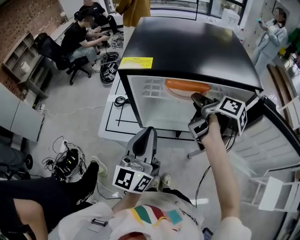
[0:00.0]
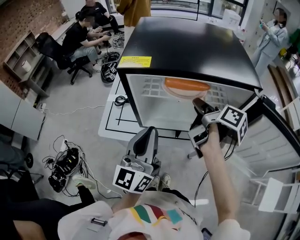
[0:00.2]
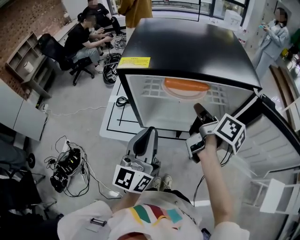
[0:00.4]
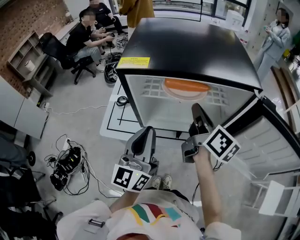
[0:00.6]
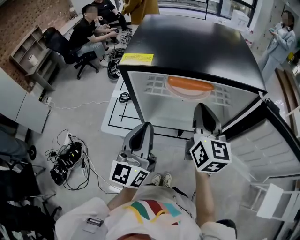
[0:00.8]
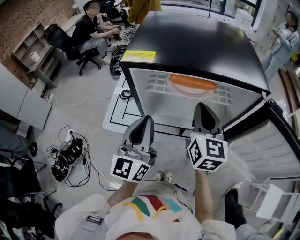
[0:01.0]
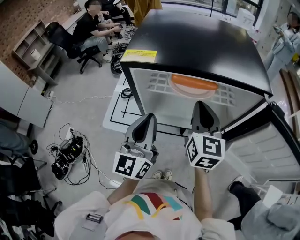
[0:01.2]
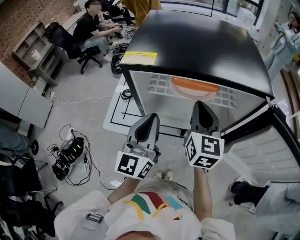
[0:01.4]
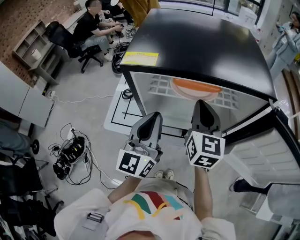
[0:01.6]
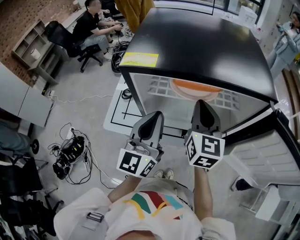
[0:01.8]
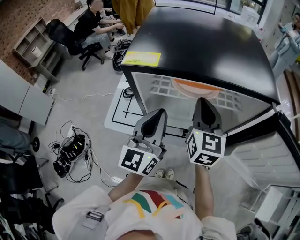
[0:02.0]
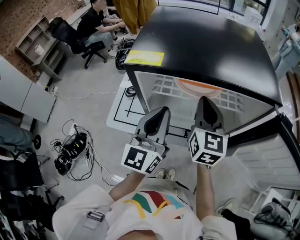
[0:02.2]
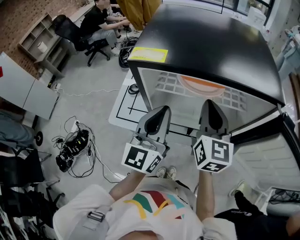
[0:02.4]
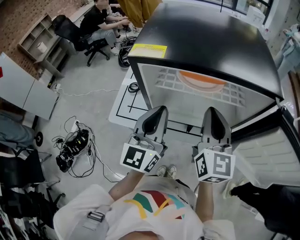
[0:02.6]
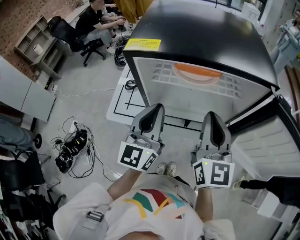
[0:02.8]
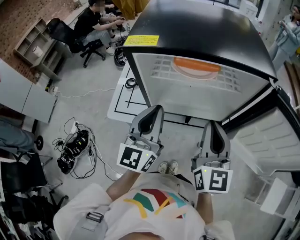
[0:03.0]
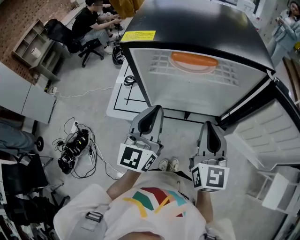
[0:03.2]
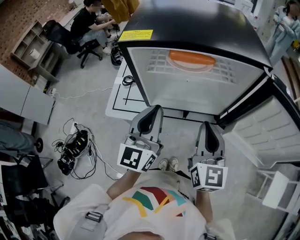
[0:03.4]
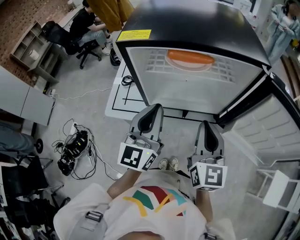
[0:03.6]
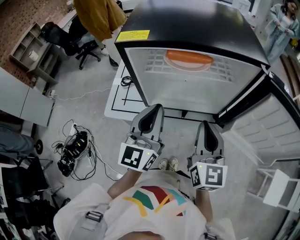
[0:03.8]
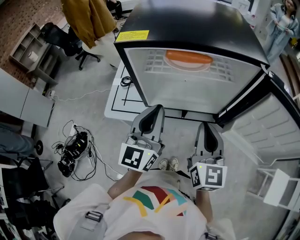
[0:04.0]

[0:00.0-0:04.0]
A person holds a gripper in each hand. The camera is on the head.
0:02.6 to 0:04.0: The left gripper ends up roughly 5 cm from where it was.

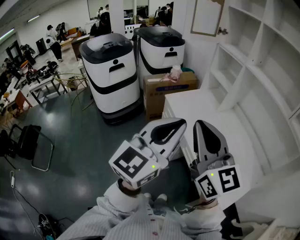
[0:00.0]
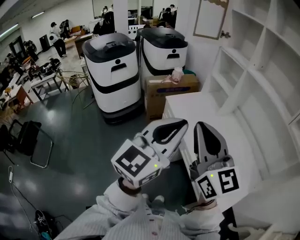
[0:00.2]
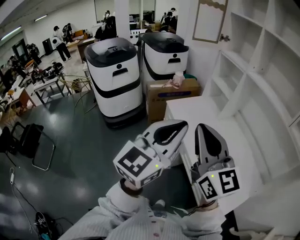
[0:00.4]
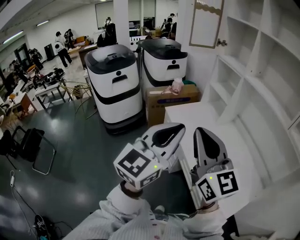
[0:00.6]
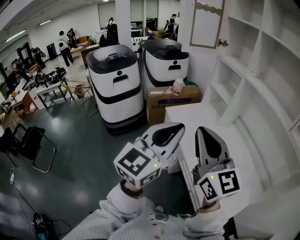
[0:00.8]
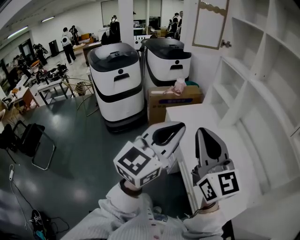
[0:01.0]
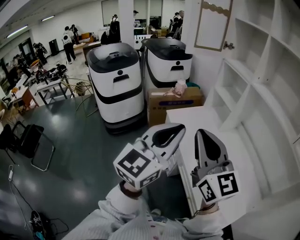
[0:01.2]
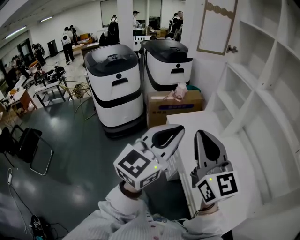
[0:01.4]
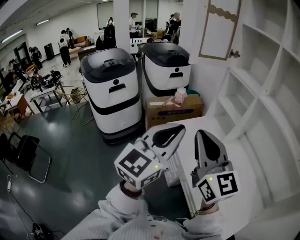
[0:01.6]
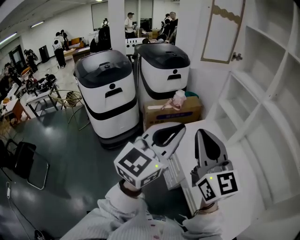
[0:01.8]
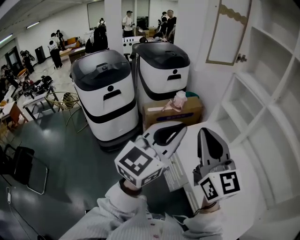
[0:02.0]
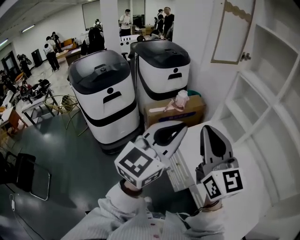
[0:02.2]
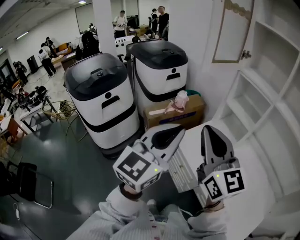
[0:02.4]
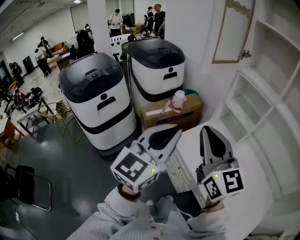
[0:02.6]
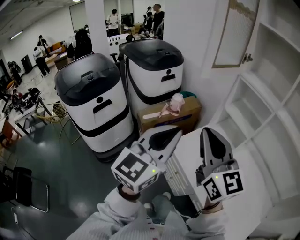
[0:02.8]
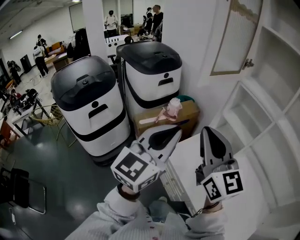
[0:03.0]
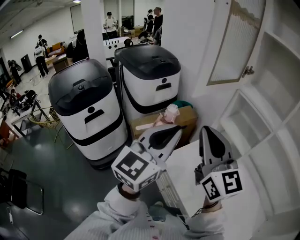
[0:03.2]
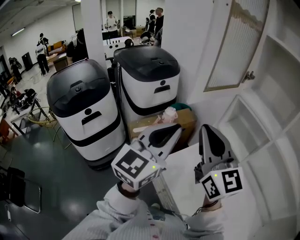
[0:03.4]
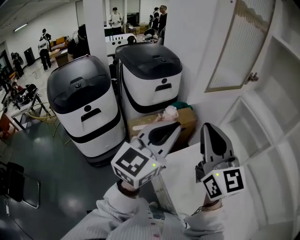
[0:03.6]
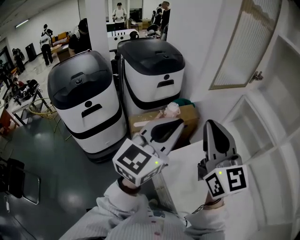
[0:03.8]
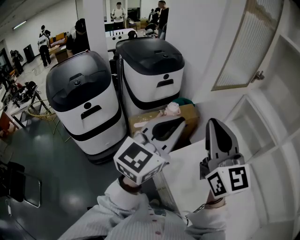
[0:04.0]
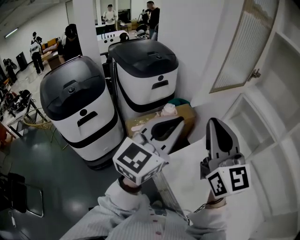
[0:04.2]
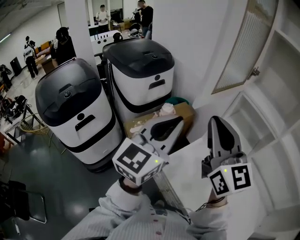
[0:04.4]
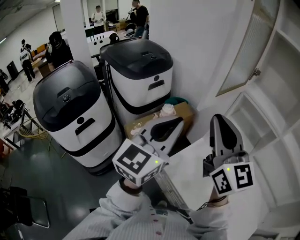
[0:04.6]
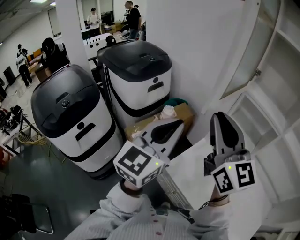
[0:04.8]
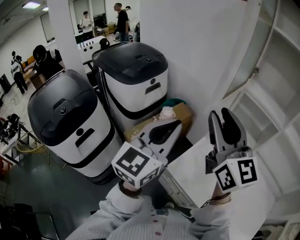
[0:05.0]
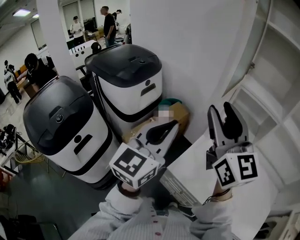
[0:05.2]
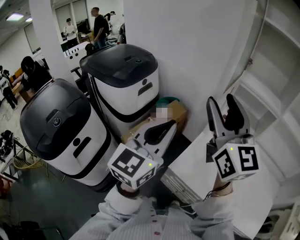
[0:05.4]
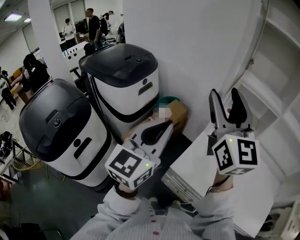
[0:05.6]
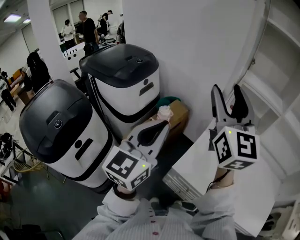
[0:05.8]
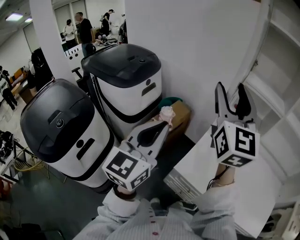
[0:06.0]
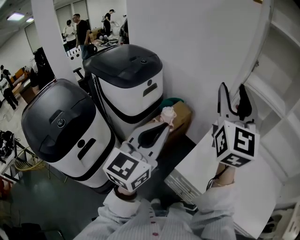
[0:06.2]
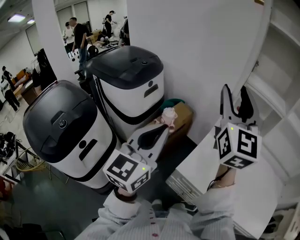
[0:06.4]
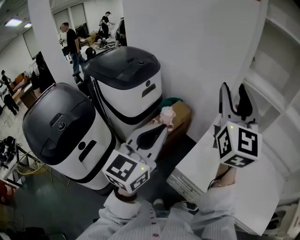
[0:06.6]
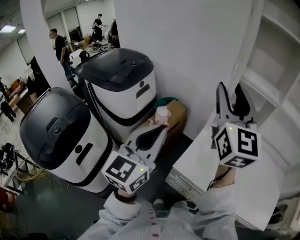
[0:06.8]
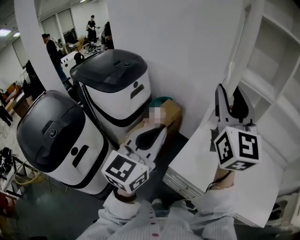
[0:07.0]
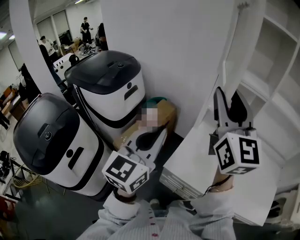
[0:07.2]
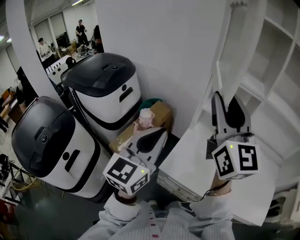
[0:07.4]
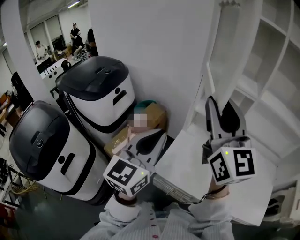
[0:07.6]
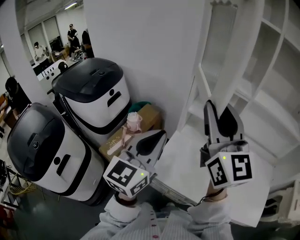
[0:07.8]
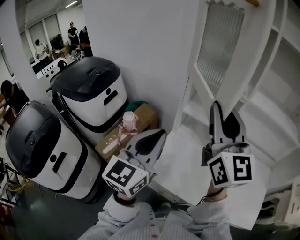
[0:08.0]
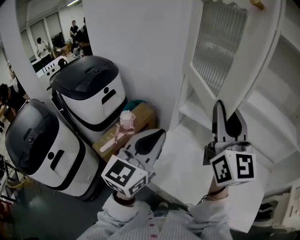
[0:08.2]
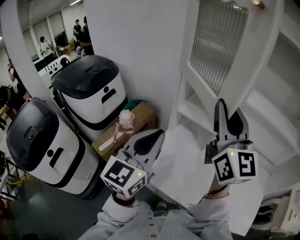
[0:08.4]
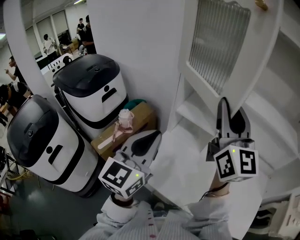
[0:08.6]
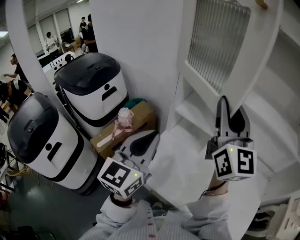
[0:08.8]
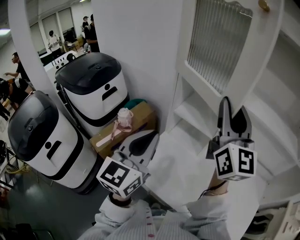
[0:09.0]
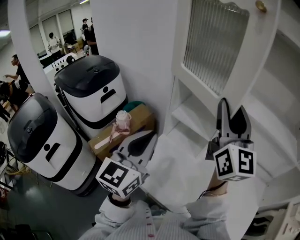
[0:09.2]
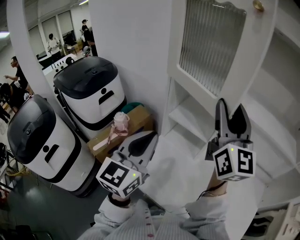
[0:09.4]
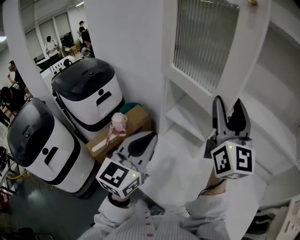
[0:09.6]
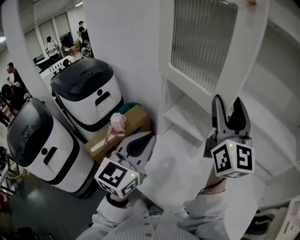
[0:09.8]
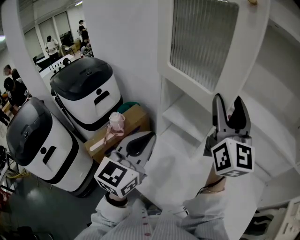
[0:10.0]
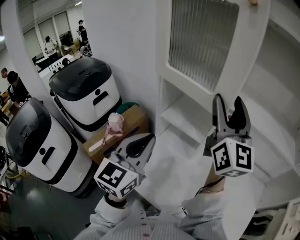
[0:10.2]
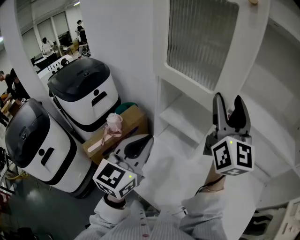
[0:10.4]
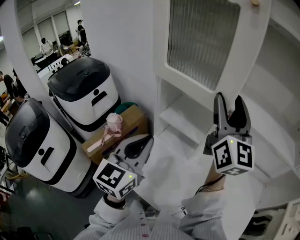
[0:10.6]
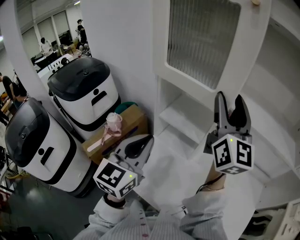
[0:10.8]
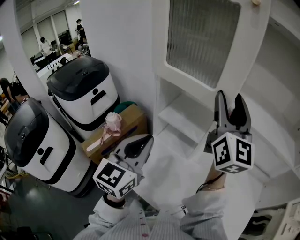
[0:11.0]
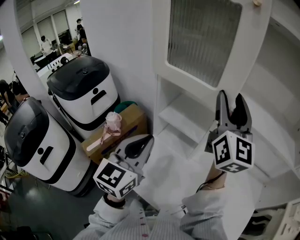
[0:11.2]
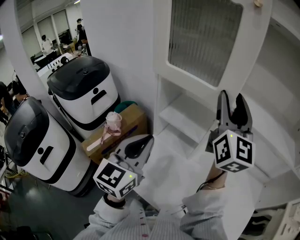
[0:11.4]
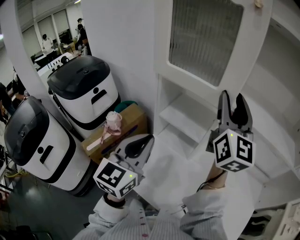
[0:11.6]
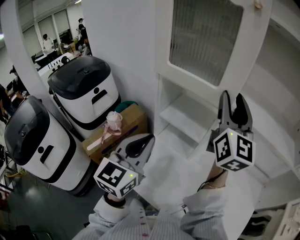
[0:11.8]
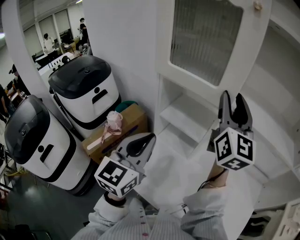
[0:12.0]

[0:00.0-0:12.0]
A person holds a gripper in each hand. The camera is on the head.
0:00.0 to 0:01.6: Both grippers move forward, about 20 cm.
0:01.6 to 0:03.0: The left gripper goes some 25 cm forward and to the left. Meanwhile the right gripper is displaced forward by about 25 cm.
0:03.0 to 0:04.4: The grippers both shift forward by roughly 15 cm.
0:04.4 to 0:06.0: The right gripper travels forward, to the left and upward by some 10 cm, changes its angle by roughly 40 degrees, and opens. Meanwhile the left gripper travels to the left by approximately 15 cm.
0:06.0 to 0:07.6: The grippers both shift to the right by about 10 cm.
0:07.6 to 0:09.0: The right gripper goes about 20 cm to the right and forward, while the left gripper moves to the right, roughly 10 cm.
0:09.0 to 0:10.4: The left gripper shifts by roughly 5 cm. Meanwhile the right gripper goes about 10 cm forward and to the right, and opens.
0:10.4 to 0:12.0: The grippers make only small movements.

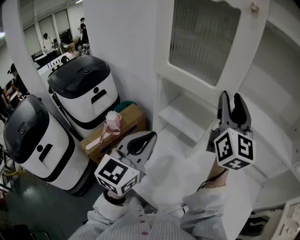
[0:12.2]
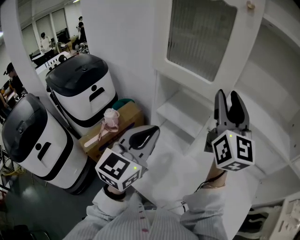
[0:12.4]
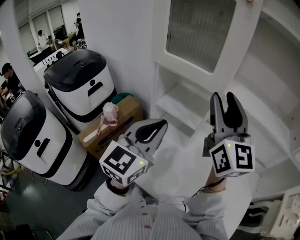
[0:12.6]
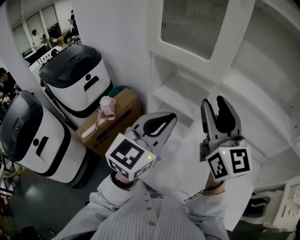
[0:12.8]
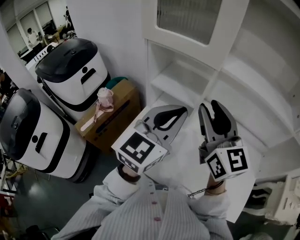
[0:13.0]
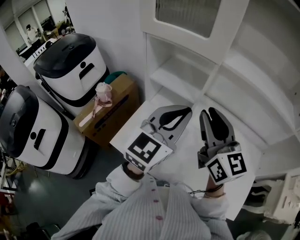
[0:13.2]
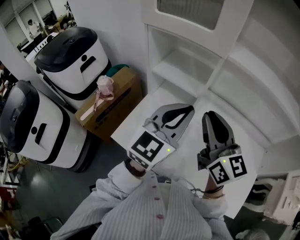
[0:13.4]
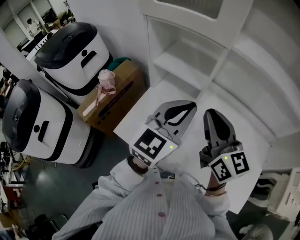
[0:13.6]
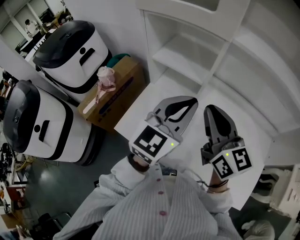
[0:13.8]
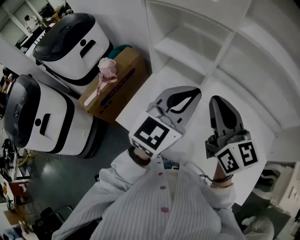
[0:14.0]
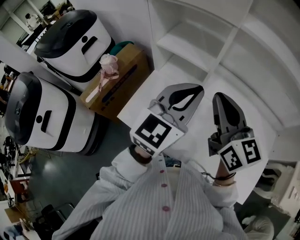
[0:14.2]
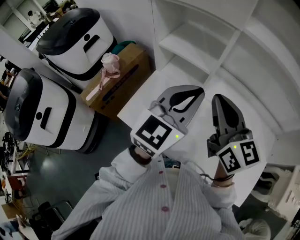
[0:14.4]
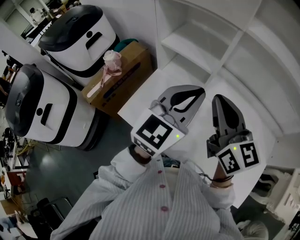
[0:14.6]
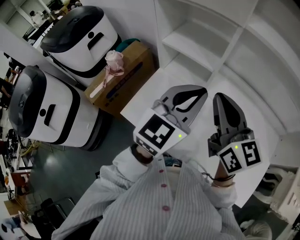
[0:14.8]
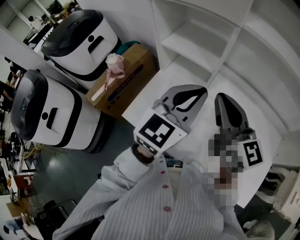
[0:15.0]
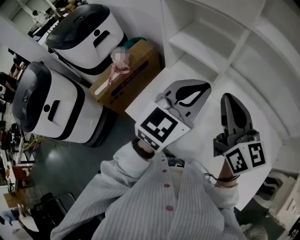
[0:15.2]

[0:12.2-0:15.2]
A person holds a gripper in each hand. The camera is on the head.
0:12.2 to 0:13.8: The right gripper is displaced downward and backward by some 25 cm, changes its angle by approximately 30 degrees, and closes, while the left gripper heads to the right and downward, covering some 15 cm.
0:13.8 to 0:15.2: Neither gripper changes place.

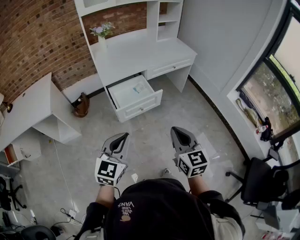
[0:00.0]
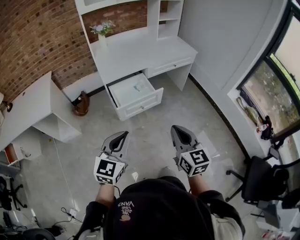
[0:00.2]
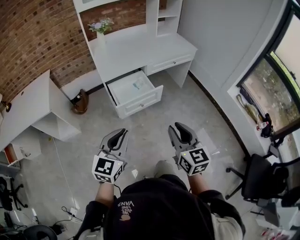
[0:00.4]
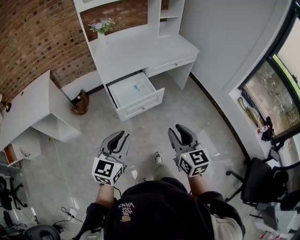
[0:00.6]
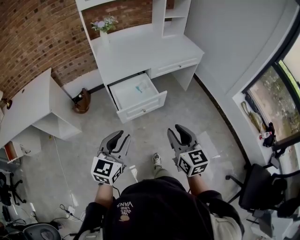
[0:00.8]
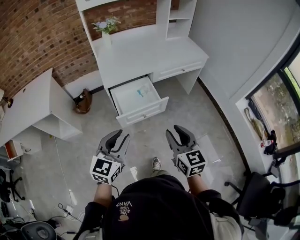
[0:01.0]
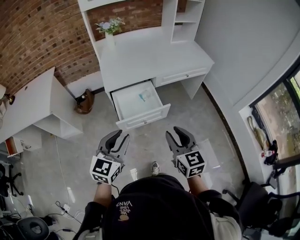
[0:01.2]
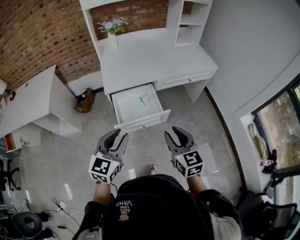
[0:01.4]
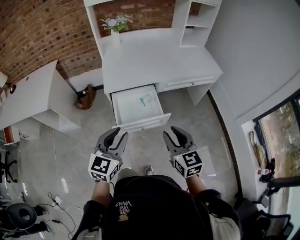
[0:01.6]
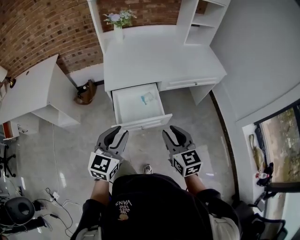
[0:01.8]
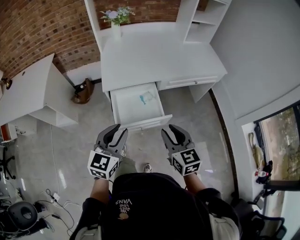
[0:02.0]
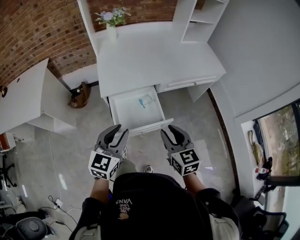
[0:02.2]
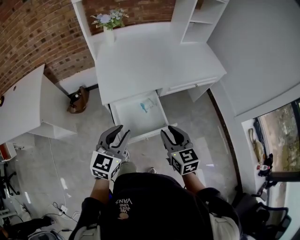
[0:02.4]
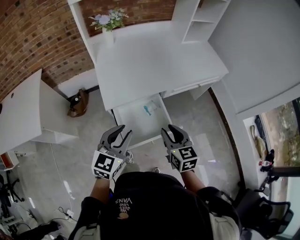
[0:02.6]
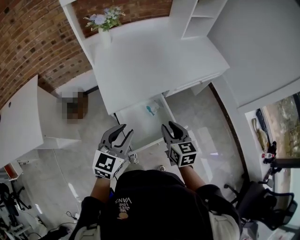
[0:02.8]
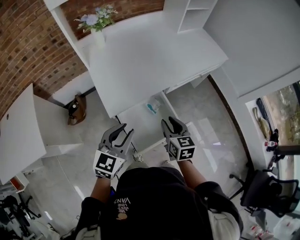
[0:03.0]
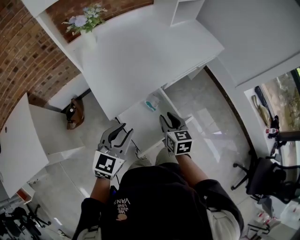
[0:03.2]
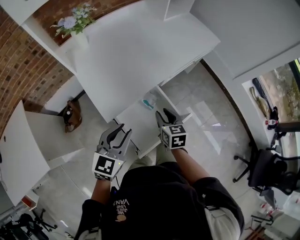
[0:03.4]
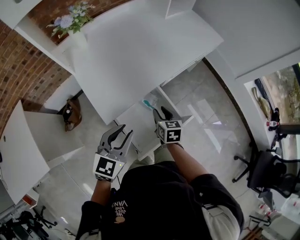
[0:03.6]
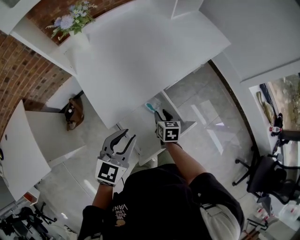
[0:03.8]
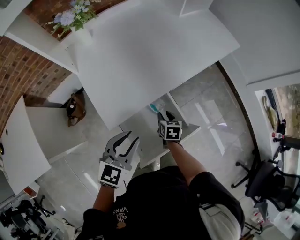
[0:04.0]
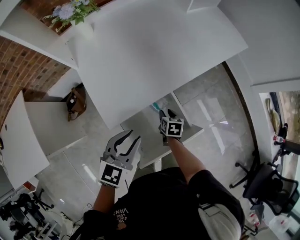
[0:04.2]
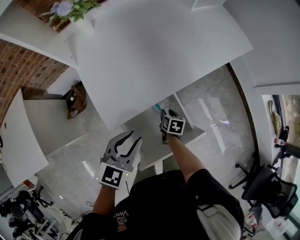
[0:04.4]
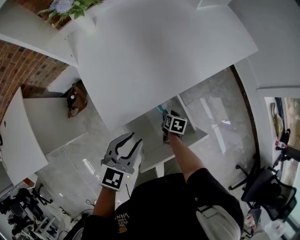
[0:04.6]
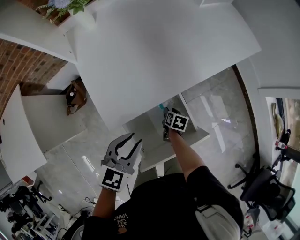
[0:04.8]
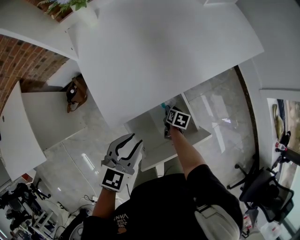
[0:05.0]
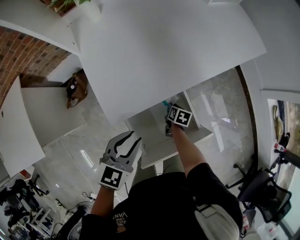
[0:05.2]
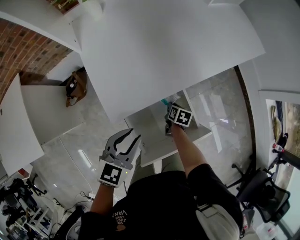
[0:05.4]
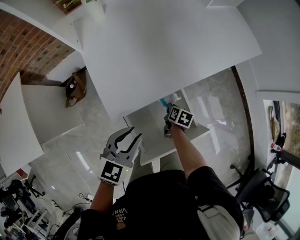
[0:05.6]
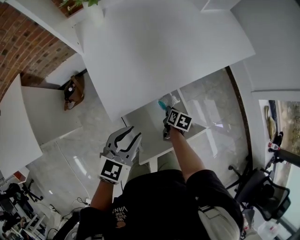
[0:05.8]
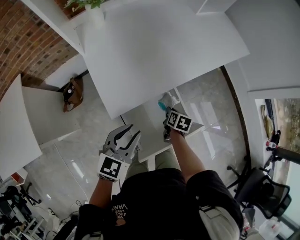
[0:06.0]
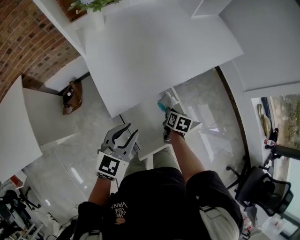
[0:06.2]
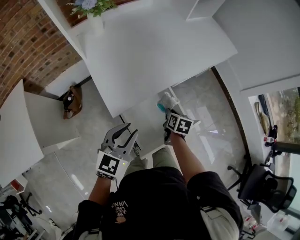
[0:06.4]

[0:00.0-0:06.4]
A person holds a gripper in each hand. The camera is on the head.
0:00.0 to 0:01.6: The grippers both shift forward by approximately 25 cm. The right gripper opens. The left gripper opens up.
0:01.6 to 0:03.2: The right gripper ends up some 35 cm from where it was, and turns by some 30 degrees, while the left gripper ends up approximately 30 cm from where it was, and swivels approximately 30 degrees.
0:03.2 to 0:04.8: The right gripper moves downward, roughly 30 cm, and swivels some 40 degrees; the left gripper is displaced downward and forward by roughly 15 cm.
0:04.8 to 0:06.4: The right gripper goes some 15 cm upward, and closes its fingers. The left gripper travels backward by roughly 5 cm.
